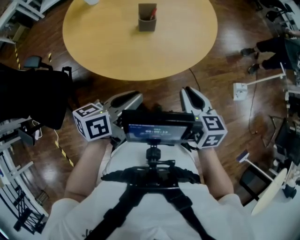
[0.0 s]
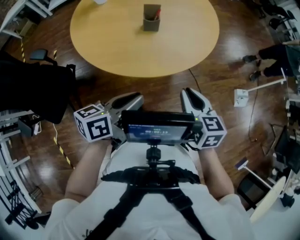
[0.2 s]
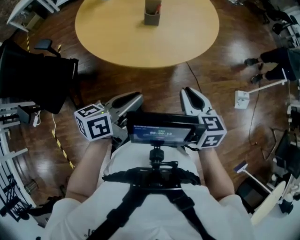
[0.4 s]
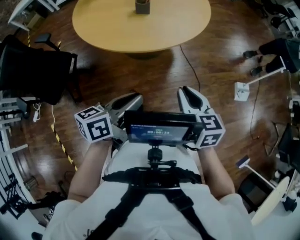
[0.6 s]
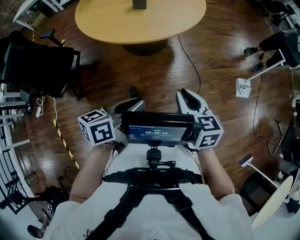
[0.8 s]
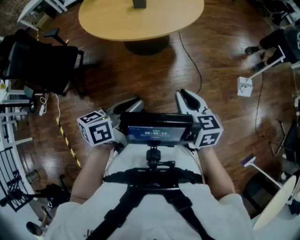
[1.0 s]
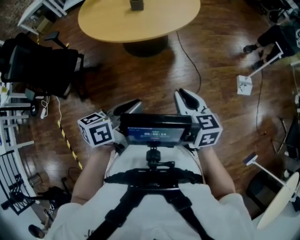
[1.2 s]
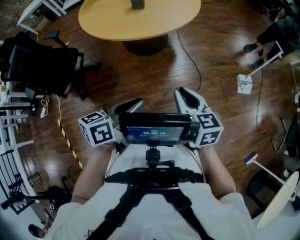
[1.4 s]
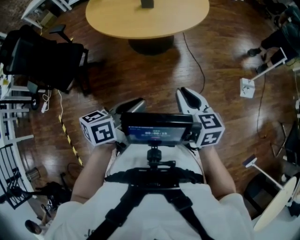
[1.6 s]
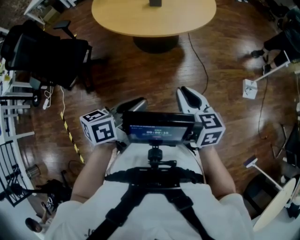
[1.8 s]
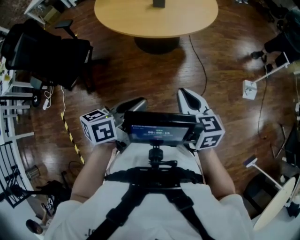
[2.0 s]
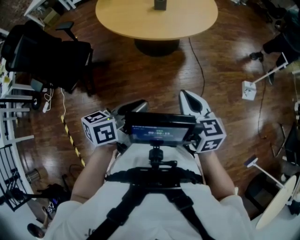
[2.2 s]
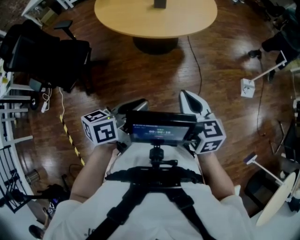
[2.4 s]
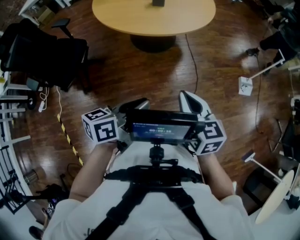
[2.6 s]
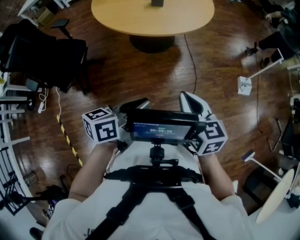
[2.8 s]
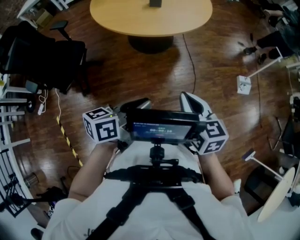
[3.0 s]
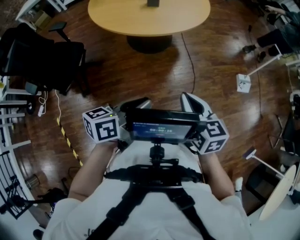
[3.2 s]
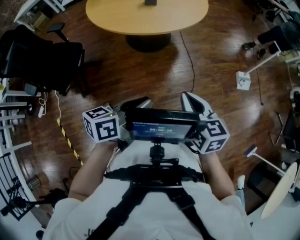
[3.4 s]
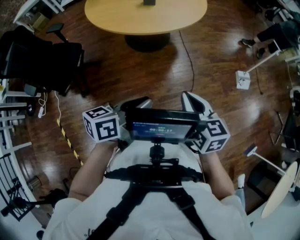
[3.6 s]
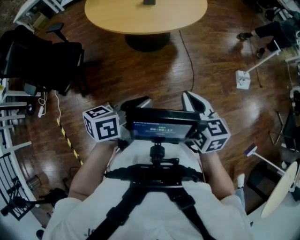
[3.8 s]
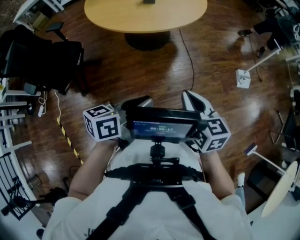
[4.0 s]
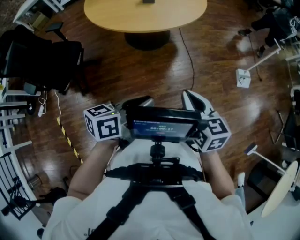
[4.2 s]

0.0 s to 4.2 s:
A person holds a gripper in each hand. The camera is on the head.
0.0 to 1.4 s: Both grippers travel together backward and to the right, approximately 30 cm.
1.4 to 2.8 s: The left gripper travels to the left by some 10 cm. Meanwhile the right gripper shifts some 10 cm to the left and backward.
2.8 to 4.2 s: There are only small adjustments of the grippers.

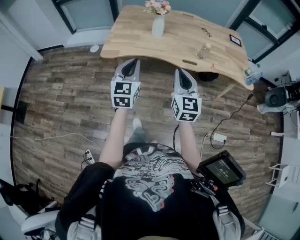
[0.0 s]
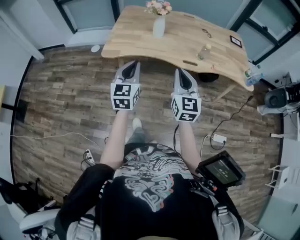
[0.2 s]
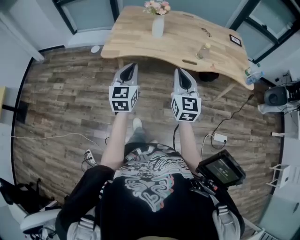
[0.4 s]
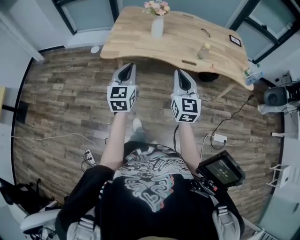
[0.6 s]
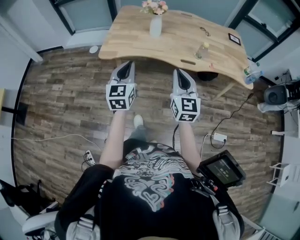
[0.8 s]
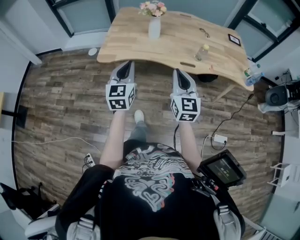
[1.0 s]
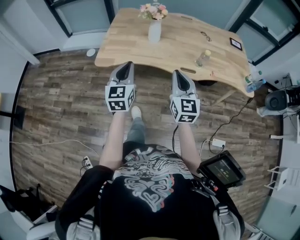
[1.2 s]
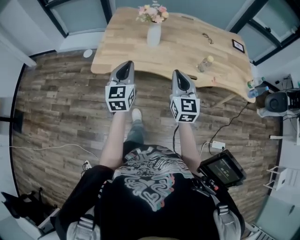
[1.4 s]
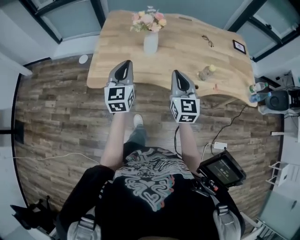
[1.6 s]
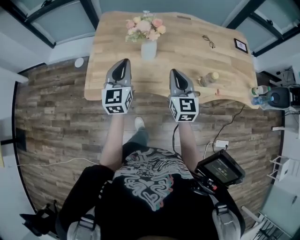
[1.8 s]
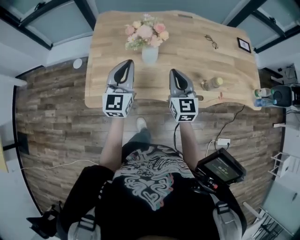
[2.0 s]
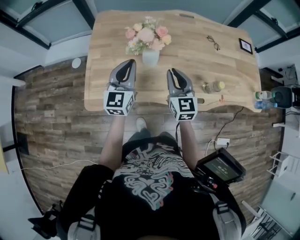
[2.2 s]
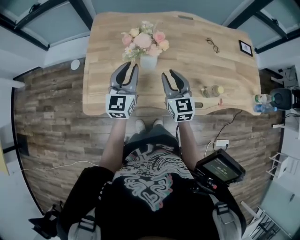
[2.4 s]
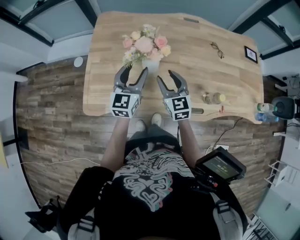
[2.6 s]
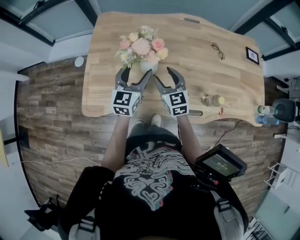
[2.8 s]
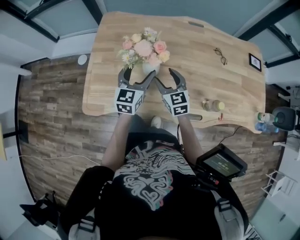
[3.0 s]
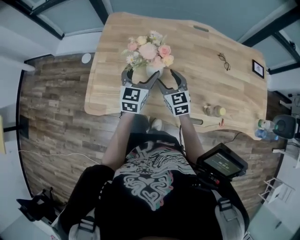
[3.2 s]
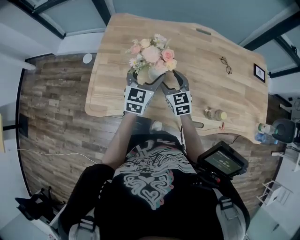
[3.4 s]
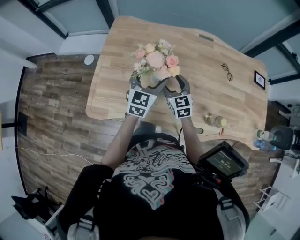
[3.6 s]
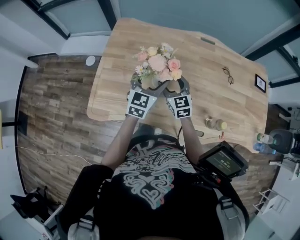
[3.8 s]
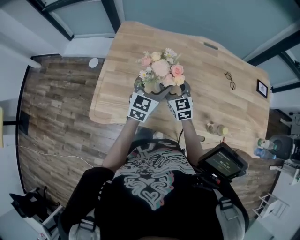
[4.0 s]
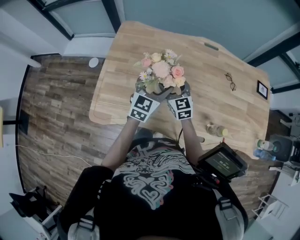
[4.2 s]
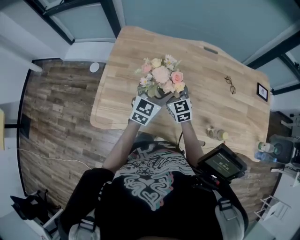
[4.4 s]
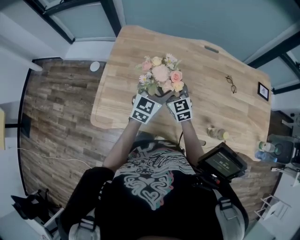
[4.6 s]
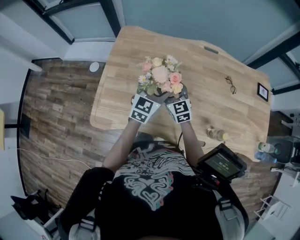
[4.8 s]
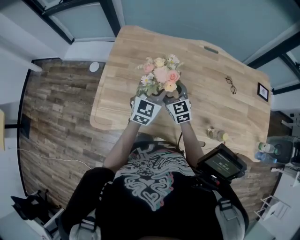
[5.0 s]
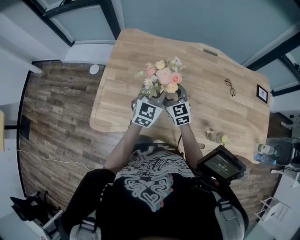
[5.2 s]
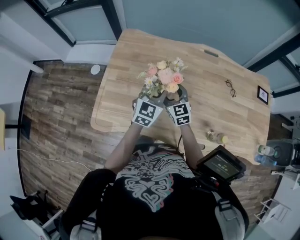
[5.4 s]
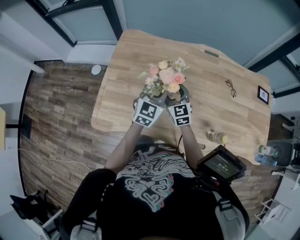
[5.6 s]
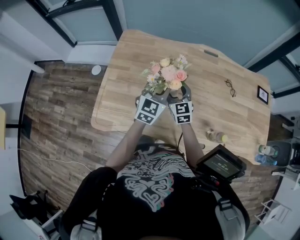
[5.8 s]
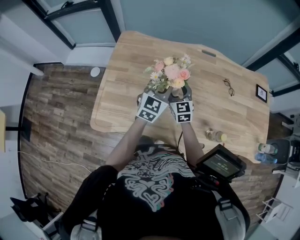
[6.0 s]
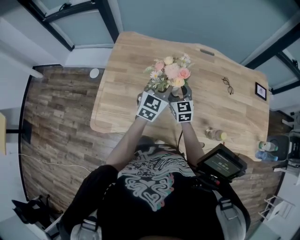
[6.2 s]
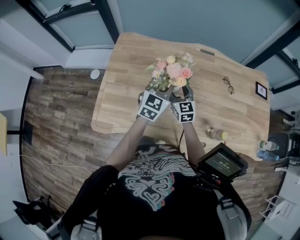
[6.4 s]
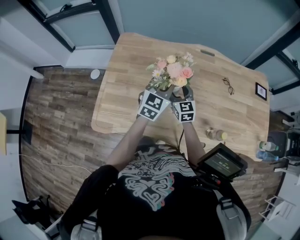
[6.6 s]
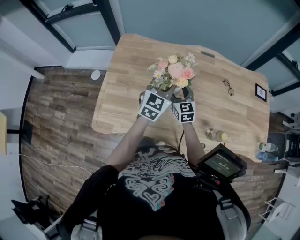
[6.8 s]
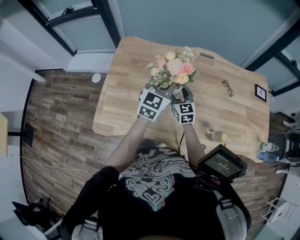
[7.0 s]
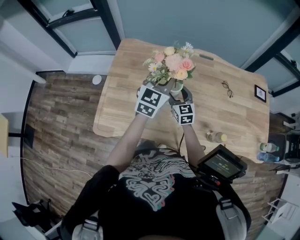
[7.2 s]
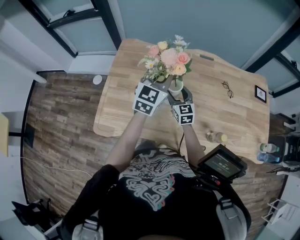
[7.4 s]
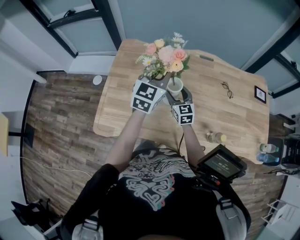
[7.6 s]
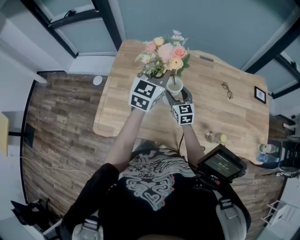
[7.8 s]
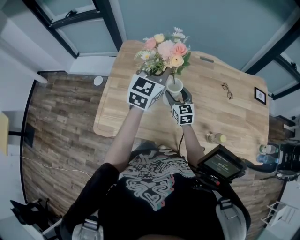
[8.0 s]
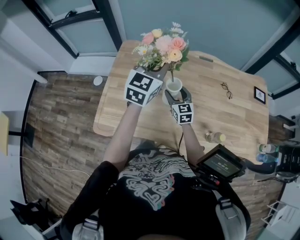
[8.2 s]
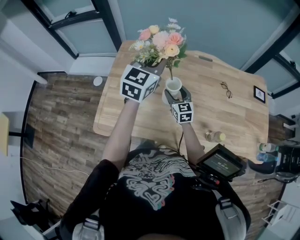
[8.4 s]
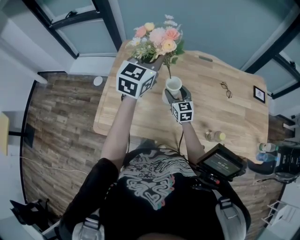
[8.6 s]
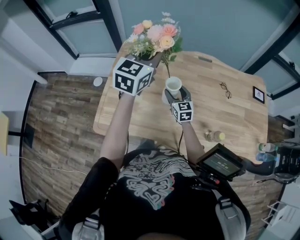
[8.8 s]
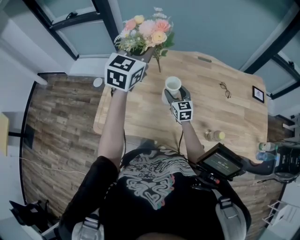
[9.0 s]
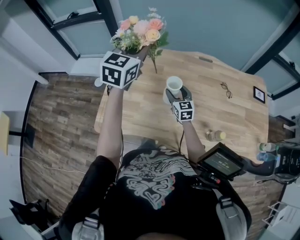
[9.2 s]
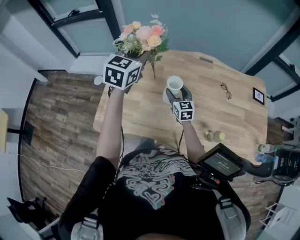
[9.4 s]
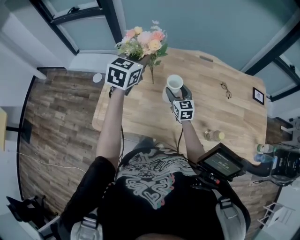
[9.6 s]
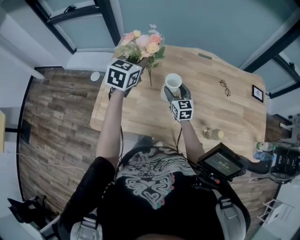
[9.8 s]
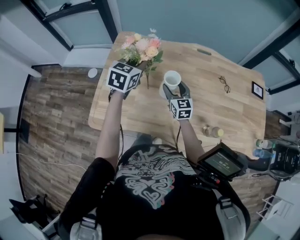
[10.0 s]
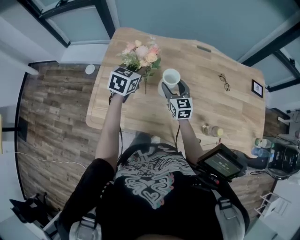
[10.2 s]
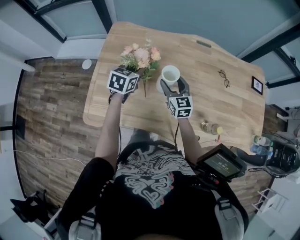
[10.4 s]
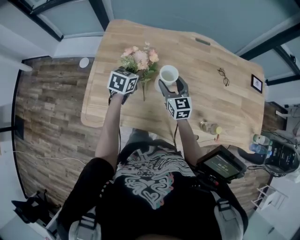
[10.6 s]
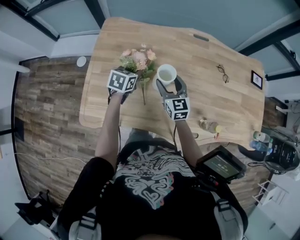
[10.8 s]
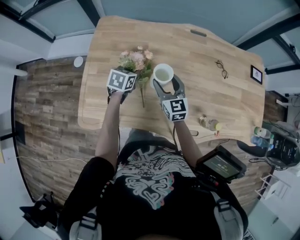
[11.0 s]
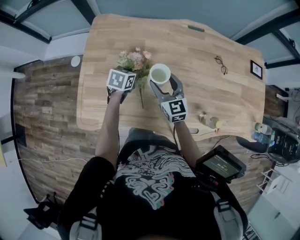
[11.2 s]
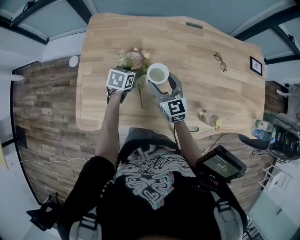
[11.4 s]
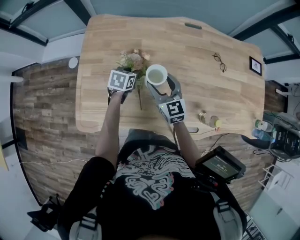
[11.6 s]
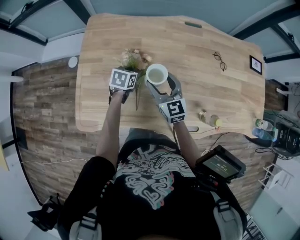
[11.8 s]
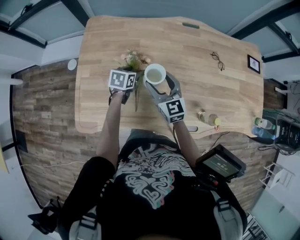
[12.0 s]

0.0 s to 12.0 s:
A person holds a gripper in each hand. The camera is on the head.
0.0 to 1.6 s: The two grippers go some 30 cm forward.
1.6 to 3.0 s: The right gripper is displaced forward and downward by about 30 cm, turns by roughly 20 degrees, and opens, while the left gripper heads forward, covering about 25 cm, and opens.
3.0 to 4.4 s: The right gripper is displaced forward by about 10 cm; the left gripper shifts by about 5 cm.
4.4 to 6.0 s: The left gripper closes.
6.0 to 7.6 s: The left gripper goes approximately 10 cm upward.
7.6 to 9.0 s: The left gripper is displaced upward and to the left by some 10 cm.
9.0 to 10.4 s: The left gripper shifts roughly 25 cm downward, and swivels roughly 30 degrees.
10.4 to 12.0 s: The left gripper moves downward, roughly 15 cm, and opens its fingers.

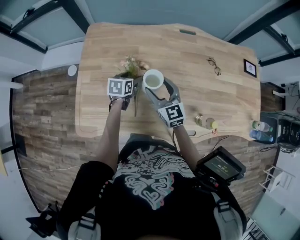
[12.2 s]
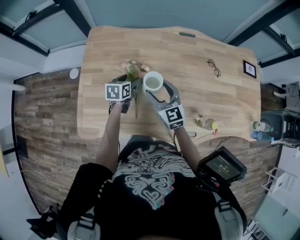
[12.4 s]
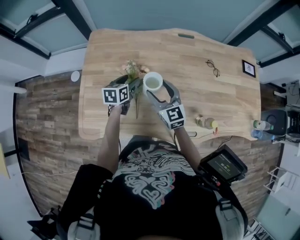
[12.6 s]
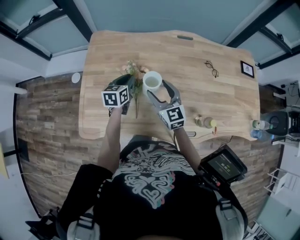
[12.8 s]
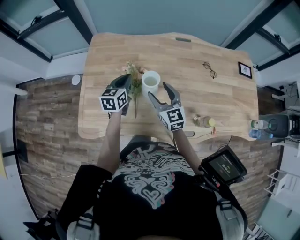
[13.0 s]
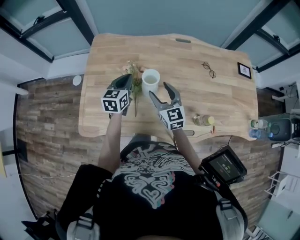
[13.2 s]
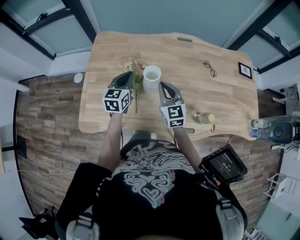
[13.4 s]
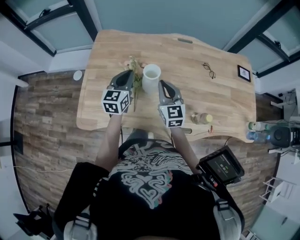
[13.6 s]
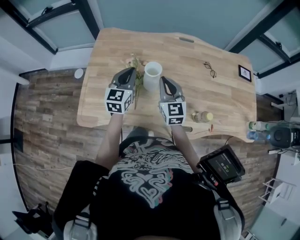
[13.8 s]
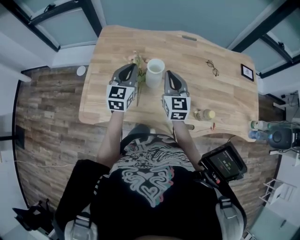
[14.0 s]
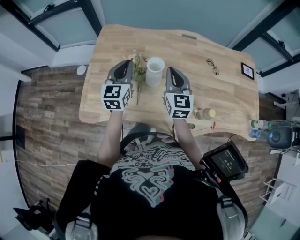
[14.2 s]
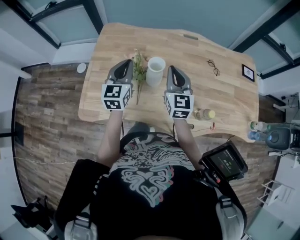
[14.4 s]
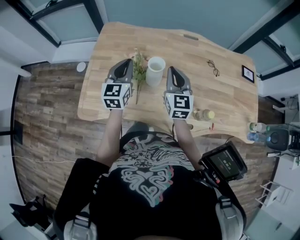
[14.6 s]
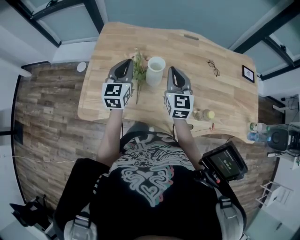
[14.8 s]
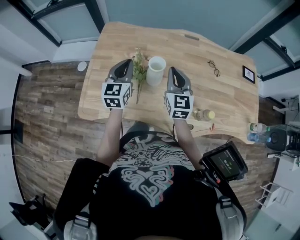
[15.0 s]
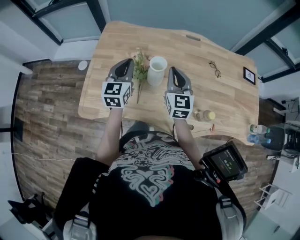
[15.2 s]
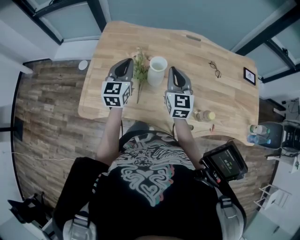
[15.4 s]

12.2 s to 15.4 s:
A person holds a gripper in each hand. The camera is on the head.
12.2 to 13.8 s: The left gripper goes about 20 cm upward and backward, points its fingers some 30 degrees further upward, and closes. The right gripper travels upward and backward by roughly 10 cm, and closes its fingers.
13.8 to 15.4 s: The grippers make only small movements.

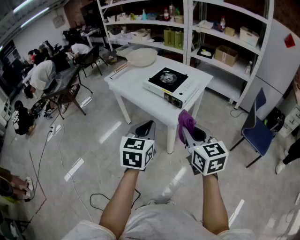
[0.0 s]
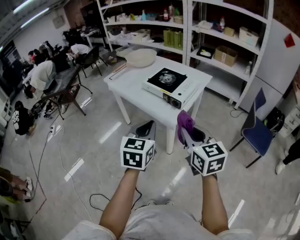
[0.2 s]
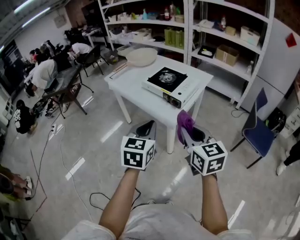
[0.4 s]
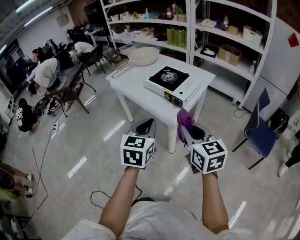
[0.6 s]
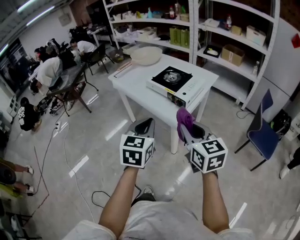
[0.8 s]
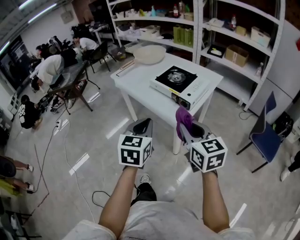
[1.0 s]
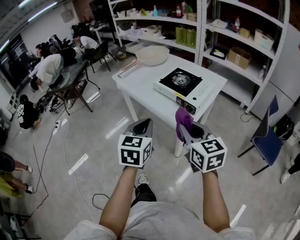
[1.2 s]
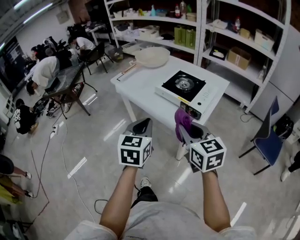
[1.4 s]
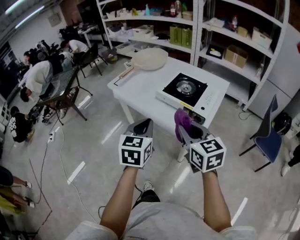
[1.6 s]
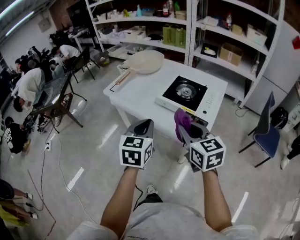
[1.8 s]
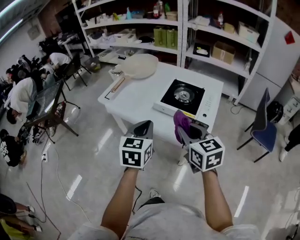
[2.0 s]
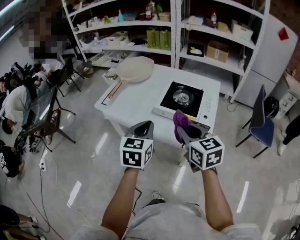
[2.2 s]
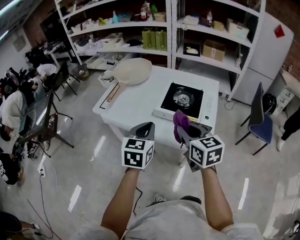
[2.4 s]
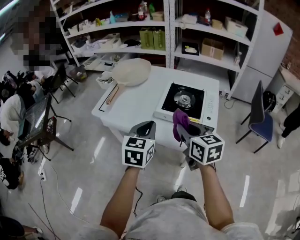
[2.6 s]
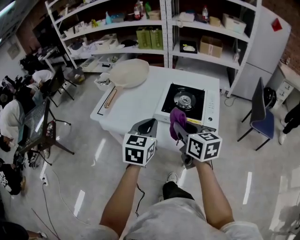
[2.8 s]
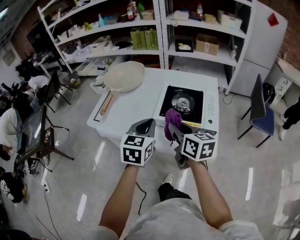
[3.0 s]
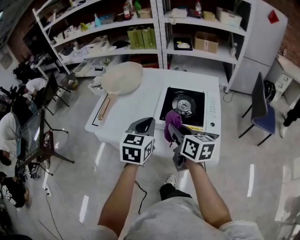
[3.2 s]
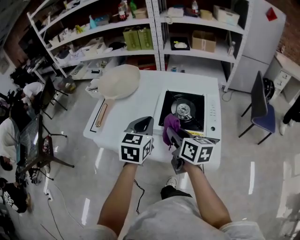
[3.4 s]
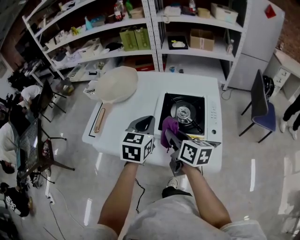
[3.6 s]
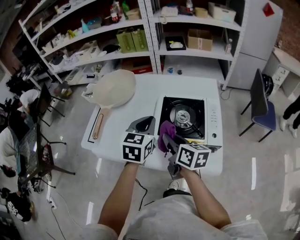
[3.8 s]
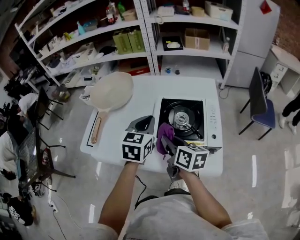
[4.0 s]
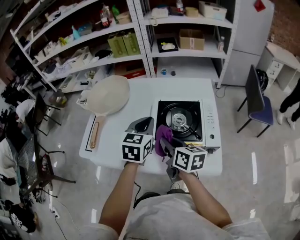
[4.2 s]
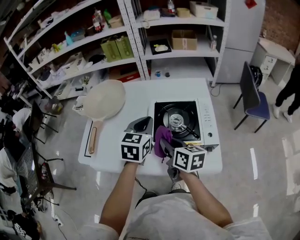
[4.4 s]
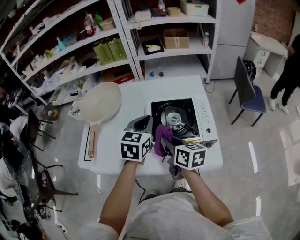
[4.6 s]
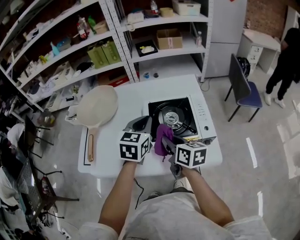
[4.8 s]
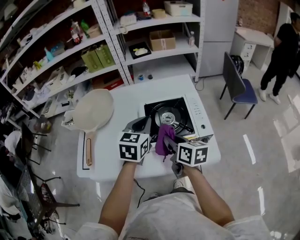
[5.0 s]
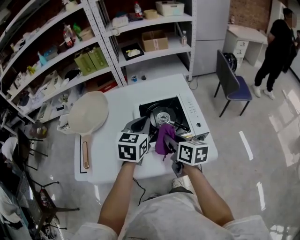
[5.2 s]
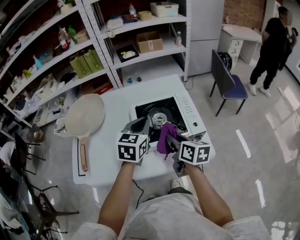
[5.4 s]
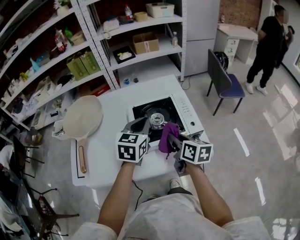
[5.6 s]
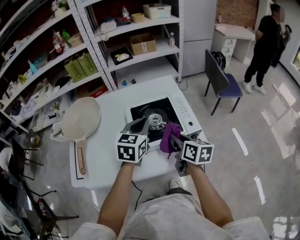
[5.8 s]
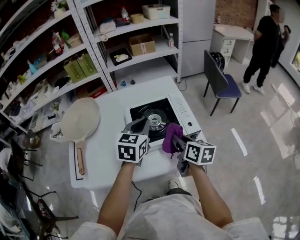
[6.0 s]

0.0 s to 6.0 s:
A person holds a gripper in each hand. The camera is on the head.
0.0 to 1.6 s: The grippers both shift forward and to the left by about 20 cm.
1.6 to 3.0 s: The right gripper moves forward and to the left, about 20 cm, and swivels about 30 degrees; the left gripper shifts some 20 cm forward, and swivels about 20 degrees.
3.0 to 4.4 s: The right gripper goes roughly 10 cm forward and downward. Meanwhile the left gripper heads forward, covering some 15 cm.
4.4 to 6.0 s: The right gripper heads to the right, covering approximately 15 cm, and turns by approximately 20 degrees. Meanwhile the left gripper is displaced to the right by some 10 cm.
